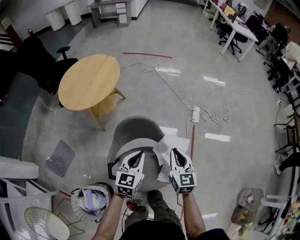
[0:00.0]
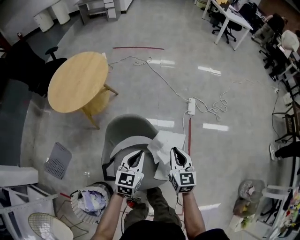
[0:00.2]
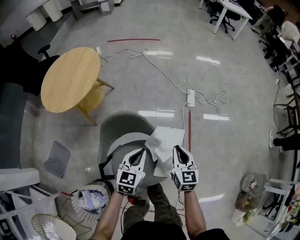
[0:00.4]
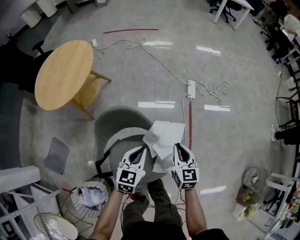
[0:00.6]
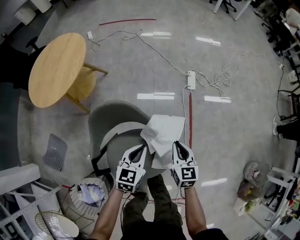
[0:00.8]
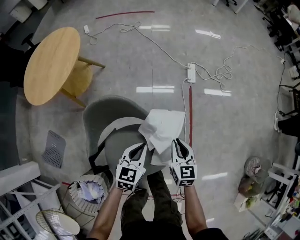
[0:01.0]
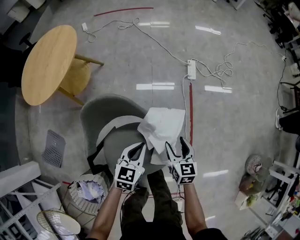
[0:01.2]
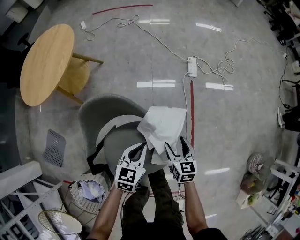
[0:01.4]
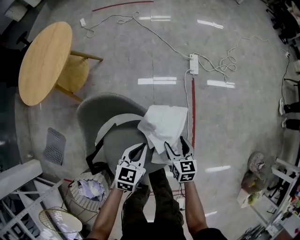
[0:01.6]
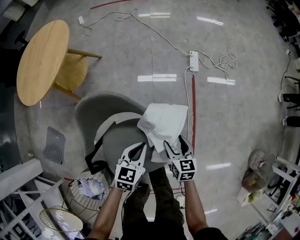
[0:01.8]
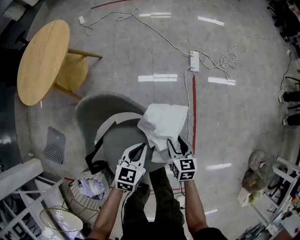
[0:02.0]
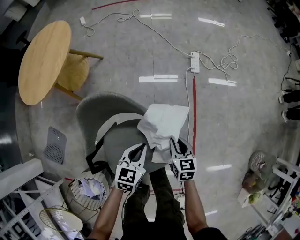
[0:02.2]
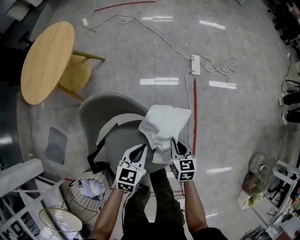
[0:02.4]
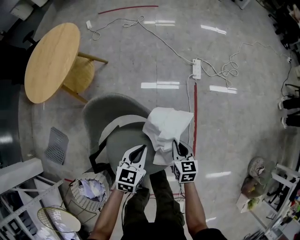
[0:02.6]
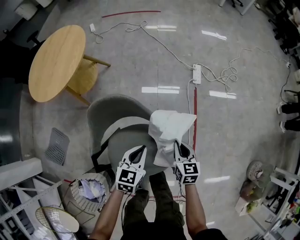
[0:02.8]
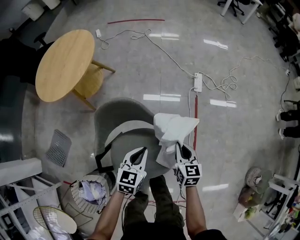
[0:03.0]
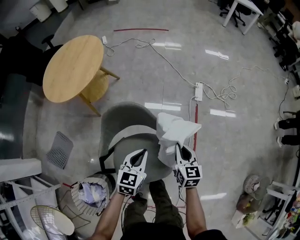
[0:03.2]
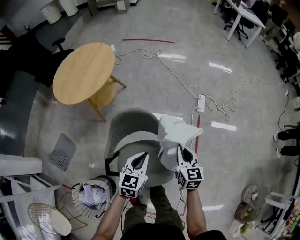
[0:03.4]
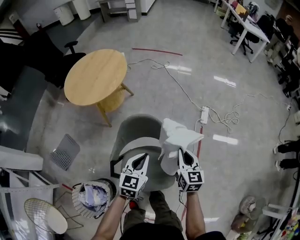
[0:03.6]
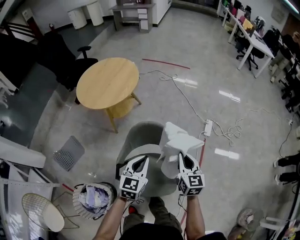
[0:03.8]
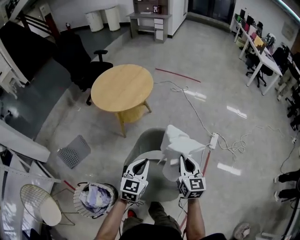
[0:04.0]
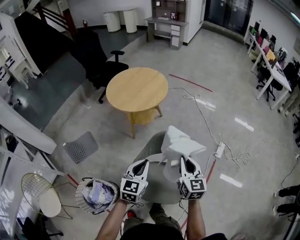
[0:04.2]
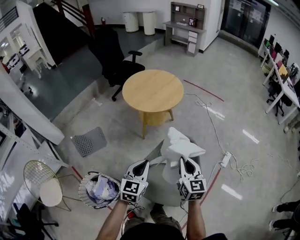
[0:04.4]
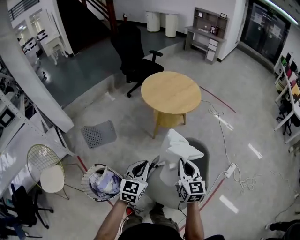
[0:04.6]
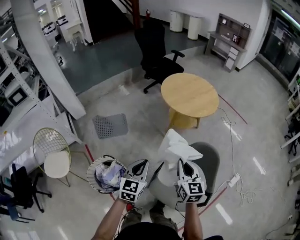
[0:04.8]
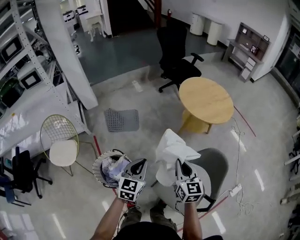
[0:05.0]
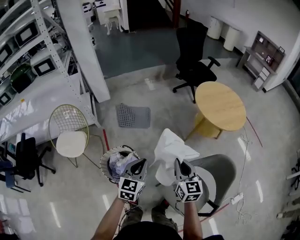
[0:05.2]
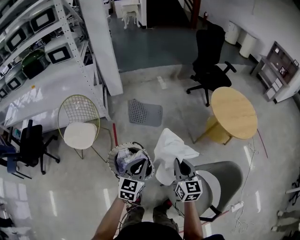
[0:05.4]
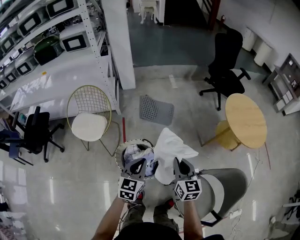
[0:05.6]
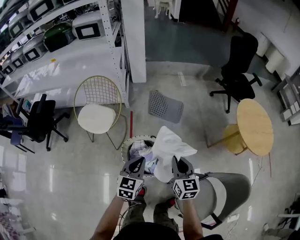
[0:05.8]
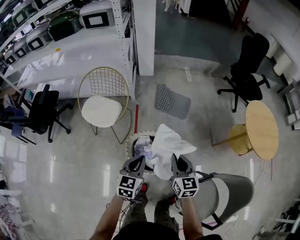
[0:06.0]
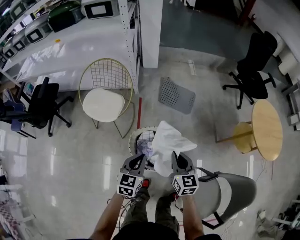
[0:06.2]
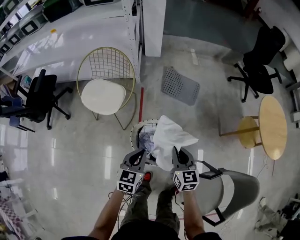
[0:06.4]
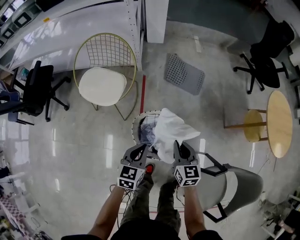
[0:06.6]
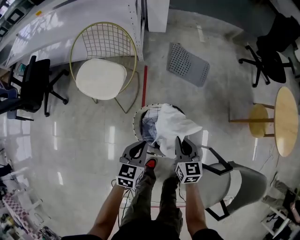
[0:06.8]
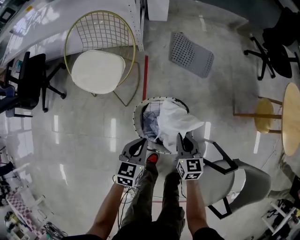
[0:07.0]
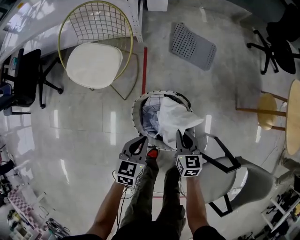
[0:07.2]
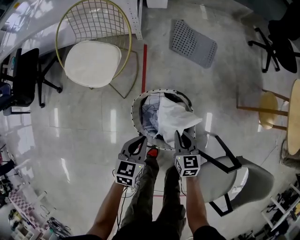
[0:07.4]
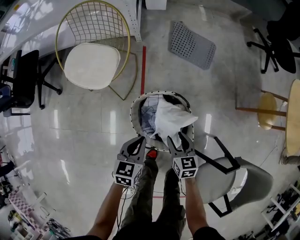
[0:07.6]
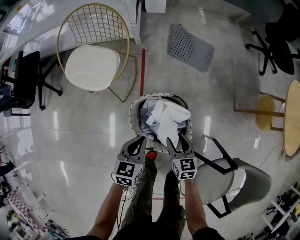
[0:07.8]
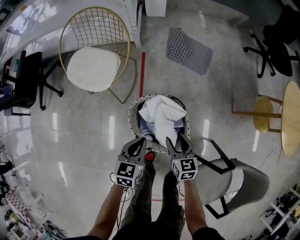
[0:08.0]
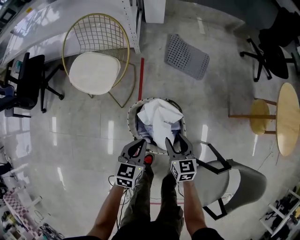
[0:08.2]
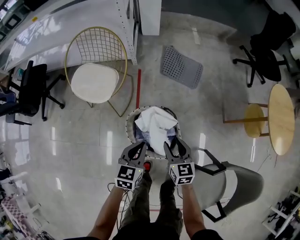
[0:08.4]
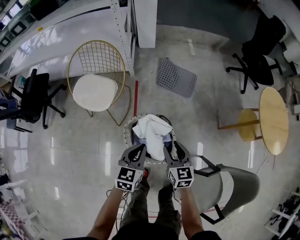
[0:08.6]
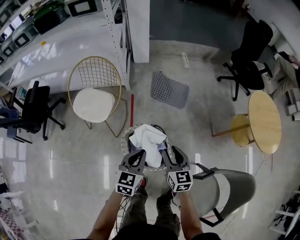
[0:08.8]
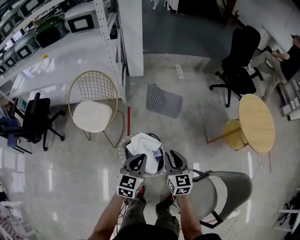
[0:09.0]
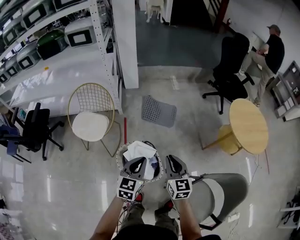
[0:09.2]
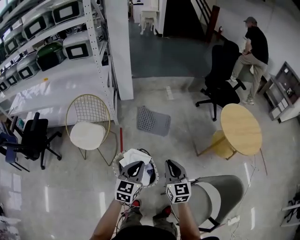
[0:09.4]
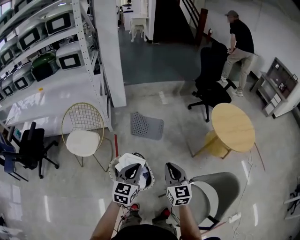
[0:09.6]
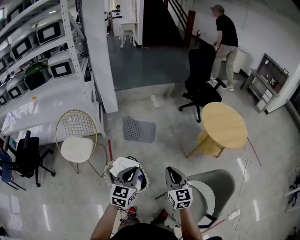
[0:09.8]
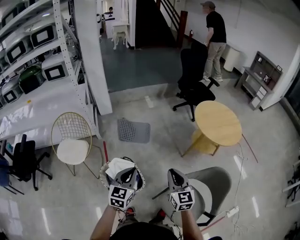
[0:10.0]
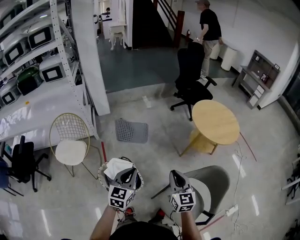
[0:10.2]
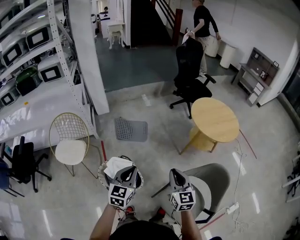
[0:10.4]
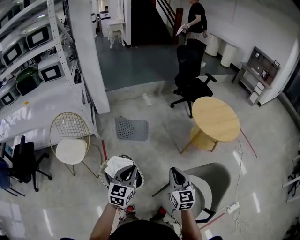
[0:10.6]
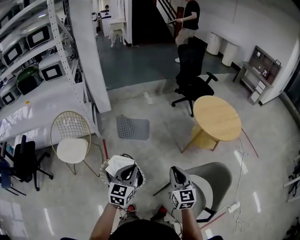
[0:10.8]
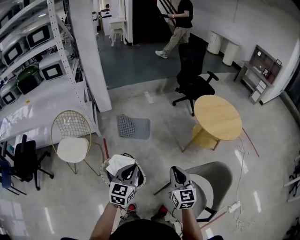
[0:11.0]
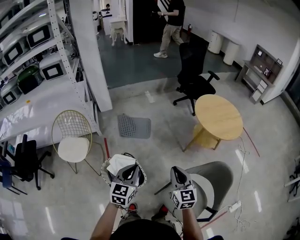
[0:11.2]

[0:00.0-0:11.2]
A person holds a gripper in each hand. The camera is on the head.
0:00.0 to 0:01.6: The right gripper shifts roughly 25 cm downward, rotates about 30 degrees, and opens; the left gripper travels downward and to the right by approximately 25 cm, and turns by approximately 20 degrees.
0:01.6 to 0:03.2: Both grippers travel together upward, approximately 10 cm. The right gripper closes up.
0:03.2 to 0:04.8: The right gripper moves roughly 40 cm, and turns by roughly 50 degrees; the left gripper shifts by about 40 cm, and swivels some 50 degrees.
0:04.8 to 0:06.4: The two grippers travel together, some 50 cm. The right gripper changes its angle by approximately 40 degrees, while the left gripper turns by some 40 degrees.
0:06.4 to 0:08.0: The grippers both shift downward by roughly 15 cm. The right gripper opens up.
0:08.0 to 0:09.6: The grippers both shift upward and to the right by approximately 40 cm. The right gripper changes its angle by some 30 degrees, and closes up; the left gripper rotates about 30 degrees.
0:09.6 to 0:11.2: The left gripper goes about 5 cm to the right. Meanwhile the right gripper heads to the right, covering approximately 10 cm.

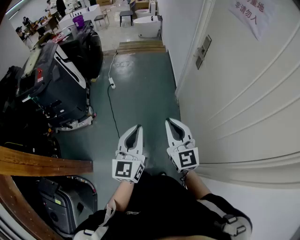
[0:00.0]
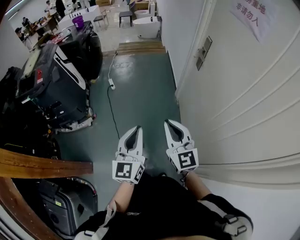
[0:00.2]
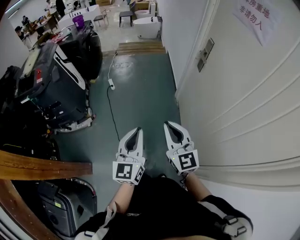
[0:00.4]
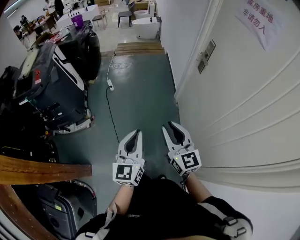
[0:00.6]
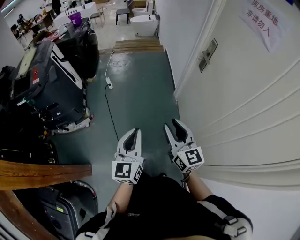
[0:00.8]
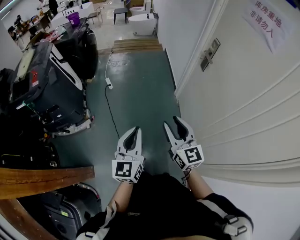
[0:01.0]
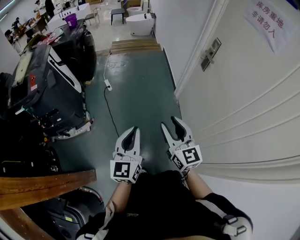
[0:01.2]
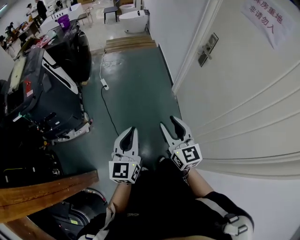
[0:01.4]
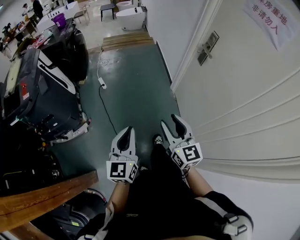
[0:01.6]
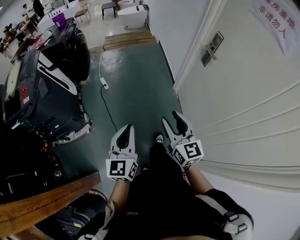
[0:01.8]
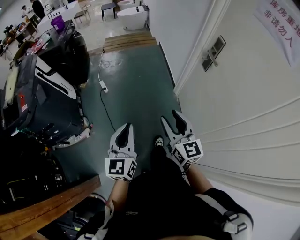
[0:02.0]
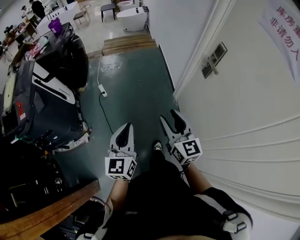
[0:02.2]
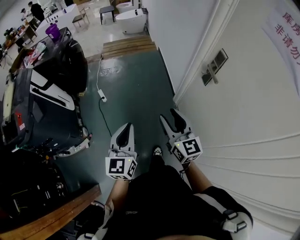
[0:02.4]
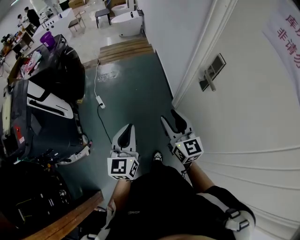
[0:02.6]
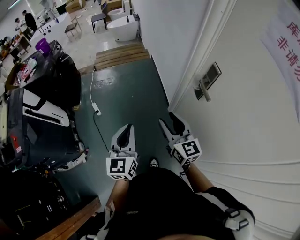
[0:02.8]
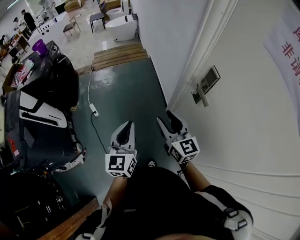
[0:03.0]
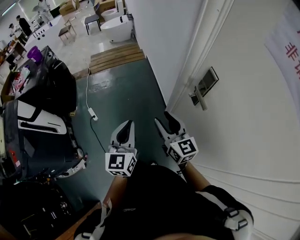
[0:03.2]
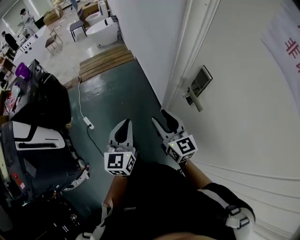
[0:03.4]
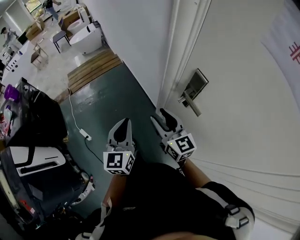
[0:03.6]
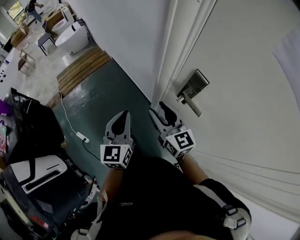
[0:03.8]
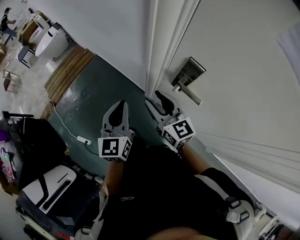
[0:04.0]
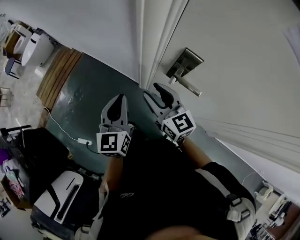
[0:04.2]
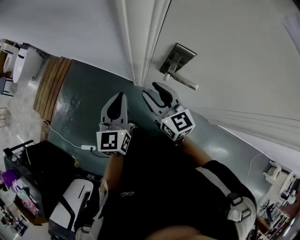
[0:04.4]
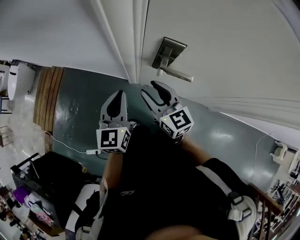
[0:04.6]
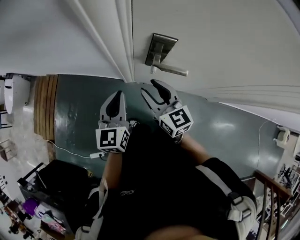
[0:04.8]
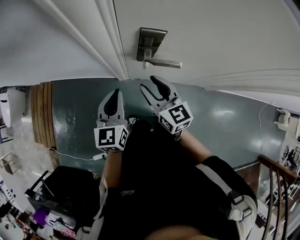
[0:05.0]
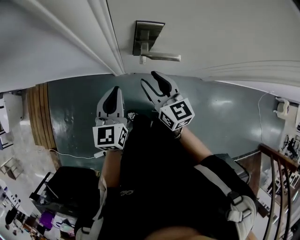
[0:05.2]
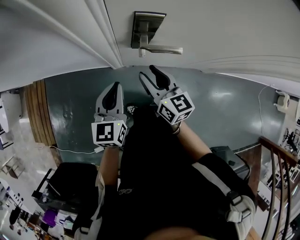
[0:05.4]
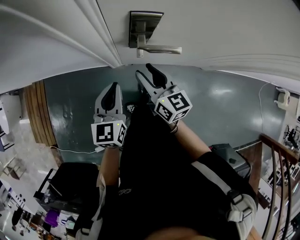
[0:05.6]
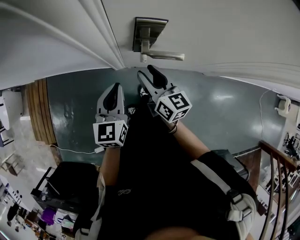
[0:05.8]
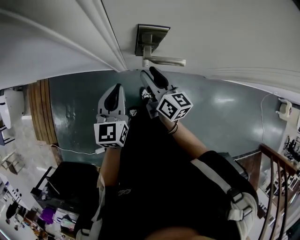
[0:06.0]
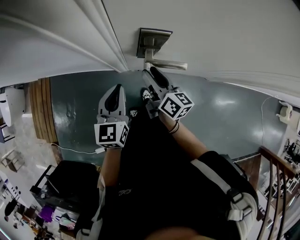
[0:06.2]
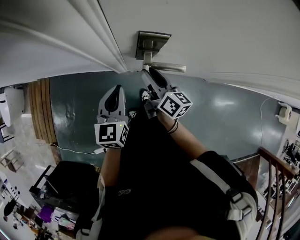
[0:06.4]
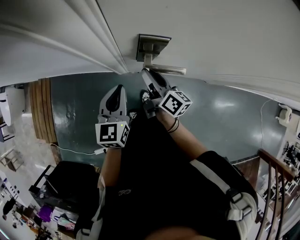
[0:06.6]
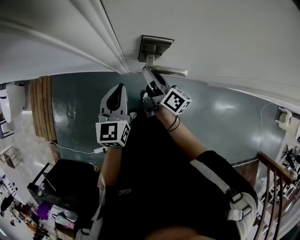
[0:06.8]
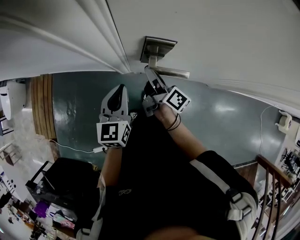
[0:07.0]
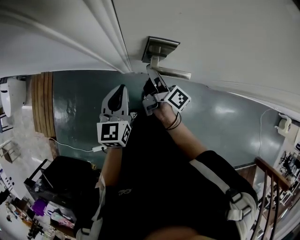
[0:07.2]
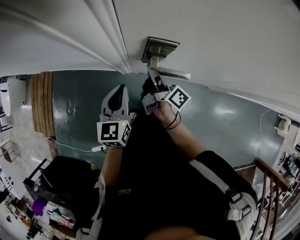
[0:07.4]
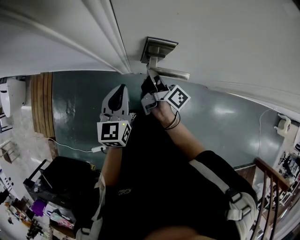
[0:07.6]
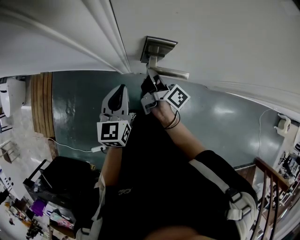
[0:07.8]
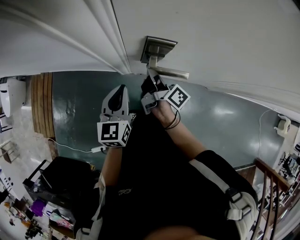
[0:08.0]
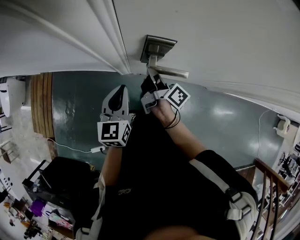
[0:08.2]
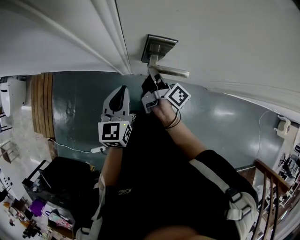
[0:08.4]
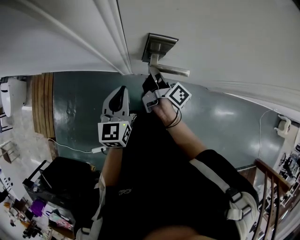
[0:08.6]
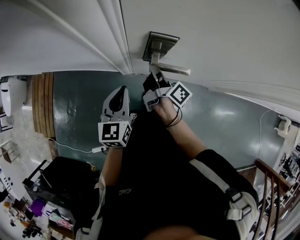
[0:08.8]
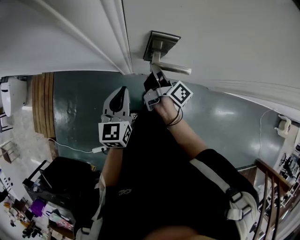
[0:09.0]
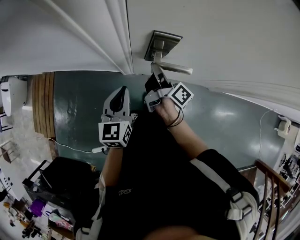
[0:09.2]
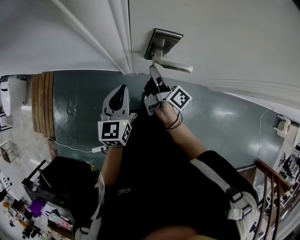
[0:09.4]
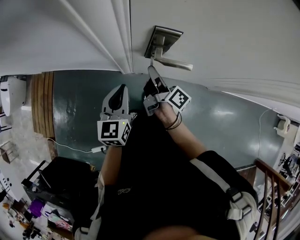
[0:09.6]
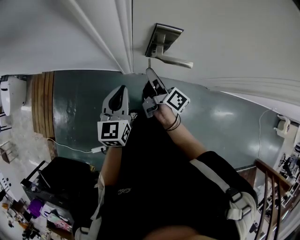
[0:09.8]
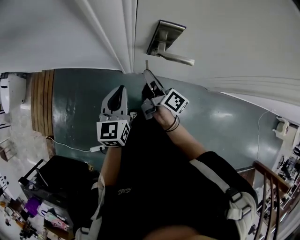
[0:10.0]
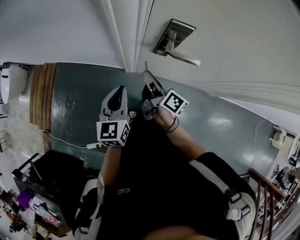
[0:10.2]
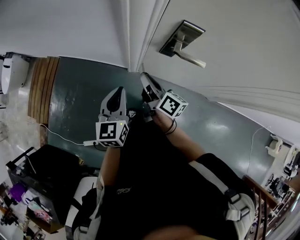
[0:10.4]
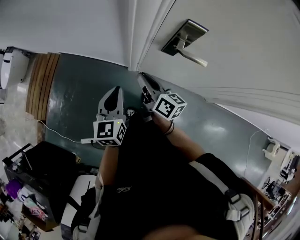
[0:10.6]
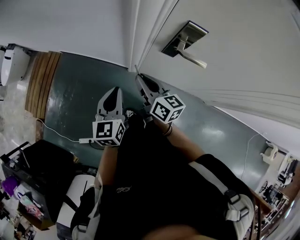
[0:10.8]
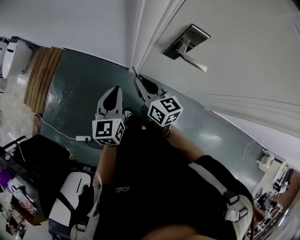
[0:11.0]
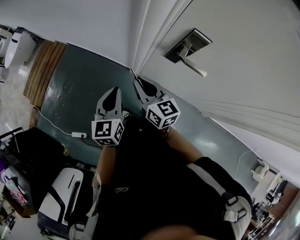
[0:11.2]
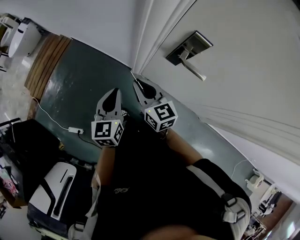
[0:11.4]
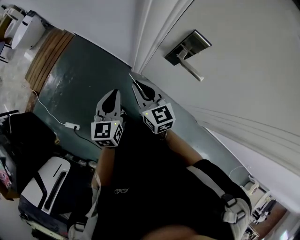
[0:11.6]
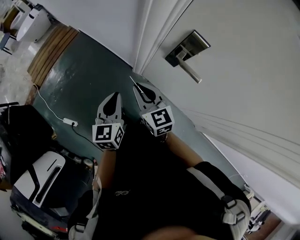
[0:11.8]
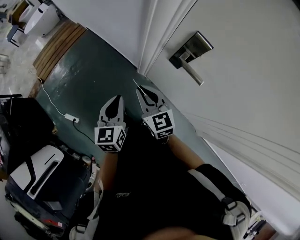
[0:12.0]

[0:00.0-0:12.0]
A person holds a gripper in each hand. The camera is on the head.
0:00.0 to 0:01.6: The left gripper moves to the left, forward and downward, approximately 20 cm. The right gripper moves forward, to the left and downward, some 15 cm, and opens.
0:01.6 to 0:03.0: The grippers both shift forward and to the right by roughly 40 cm.
0:03.0 to 0:04.4: The right gripper ends up some 25 cm from where it was, and swivels some 40 degrees. Meanwhile the left gripper shifts by roughly 35 cm, and swivels approximately 50 degrees.
0:04.4 to 0:06.0: The left gripper moves approximately 10 cm, and swivels some 30 degrees. Meanwhile the right gripper is displaced downward by roughly 10 cm, and swivels roughly 40 degrees.
0:06.0 to 0:07.6: The right gripper is displaced forward by approximately 5 cm, rolls clockwise, seen from behind, by approximately 40 degrees, and closes up.
0:07.6 to 0:09.0: There are only small adjustments of the grippers.
0:09.0 to 0:10.4: The two grippers go about 15 cm to the left and backward. The right gripper swivels about 30 degrees.
0:10.4 to 0:12.0: The right gripper moves about 10 cm, and twists approximately 60 degrees counterclockwise, seen from behind, while the left gripper ends up about 10 cm from where it was, and rotates roughly 30 degrees.
